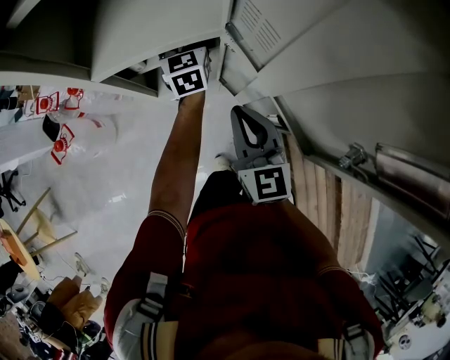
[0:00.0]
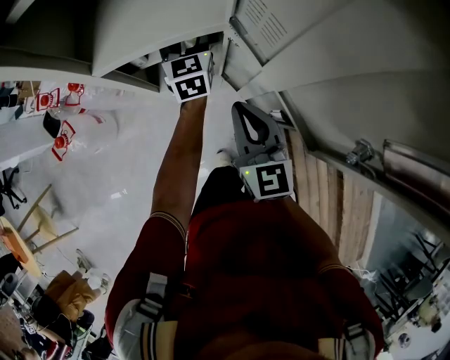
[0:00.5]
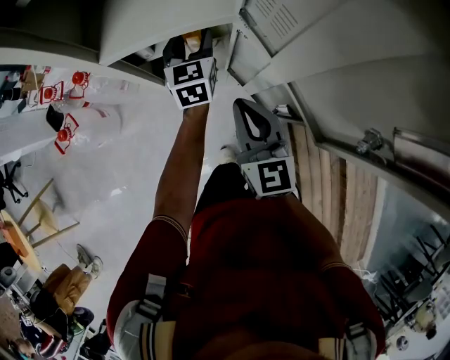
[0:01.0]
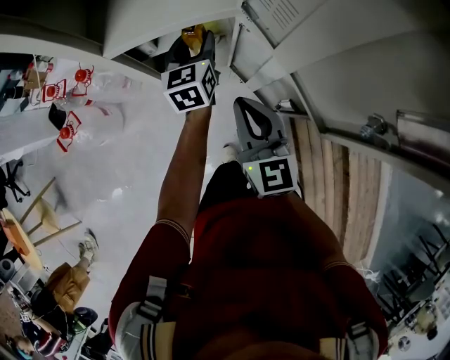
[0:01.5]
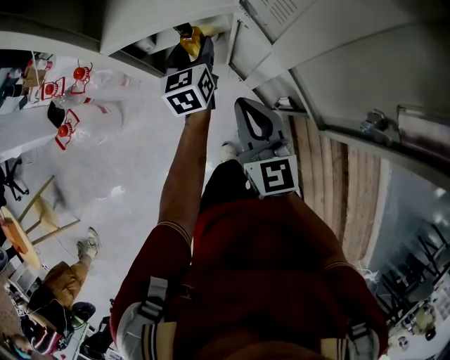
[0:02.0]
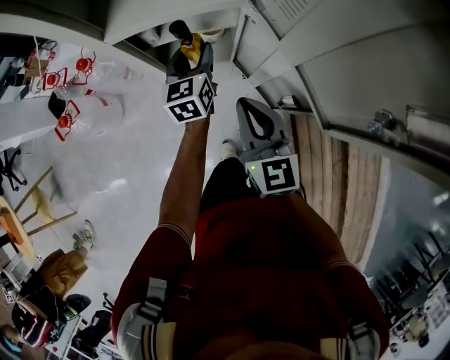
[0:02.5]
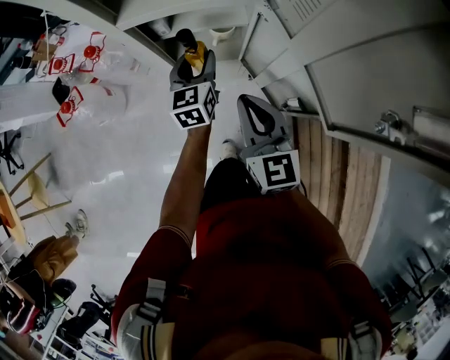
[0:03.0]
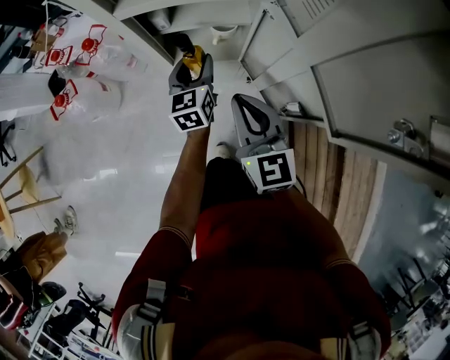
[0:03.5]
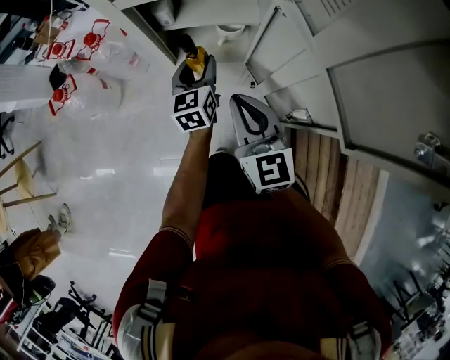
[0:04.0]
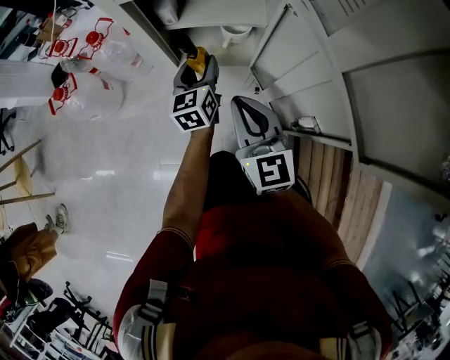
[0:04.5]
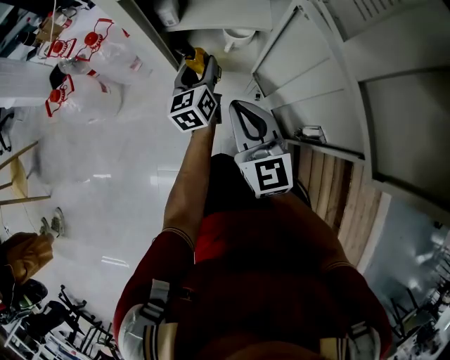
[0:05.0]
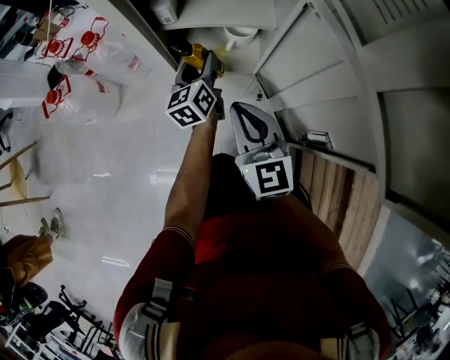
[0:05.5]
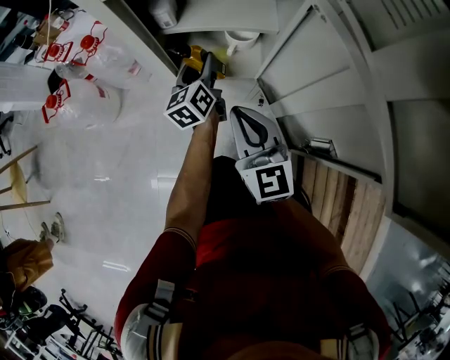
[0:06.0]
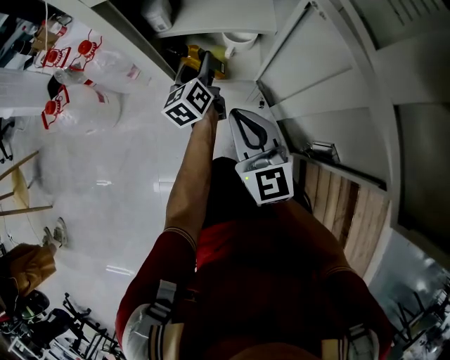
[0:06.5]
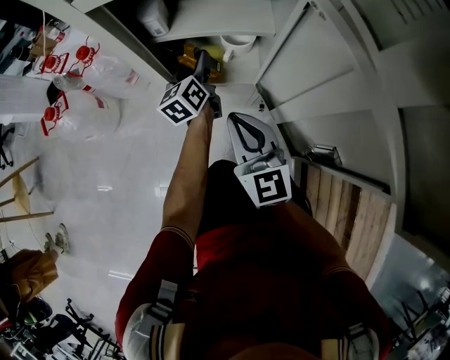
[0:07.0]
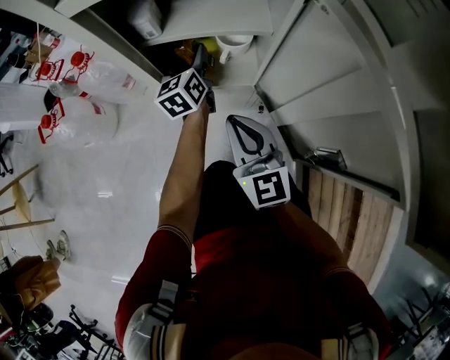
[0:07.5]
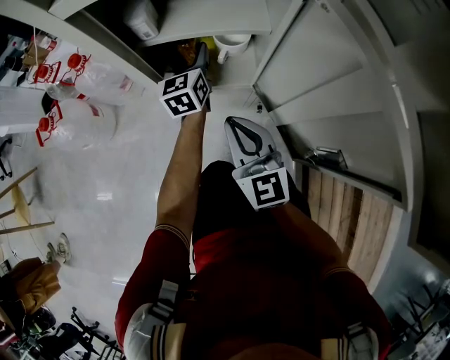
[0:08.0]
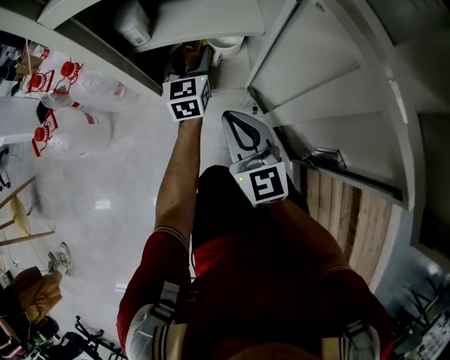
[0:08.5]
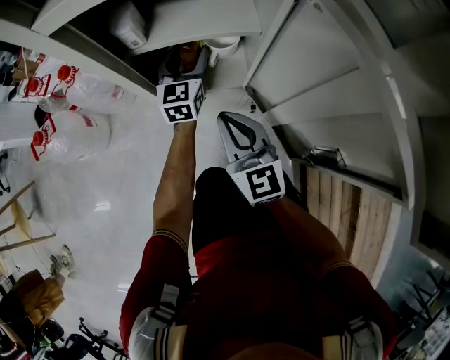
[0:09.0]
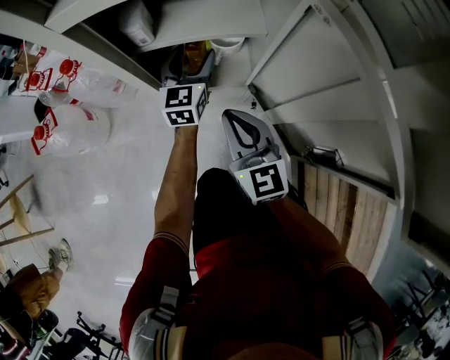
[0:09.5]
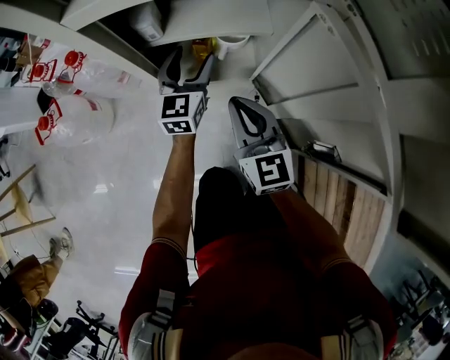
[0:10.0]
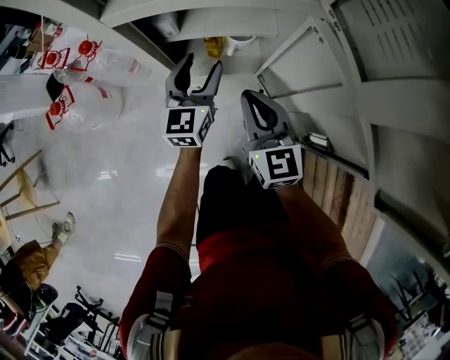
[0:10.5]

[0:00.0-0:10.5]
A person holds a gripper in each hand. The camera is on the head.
0.0 to 2.0 s: The left gripper shifts about 10 cm backward.
2.0 to 4.0 s: The right gripper is displaced downward by approximately 10 cm, while the left gripper shifts about 15 cm downward, to the left and backward.
4.0 to 6.5 s: The right gripper travels downward by some 10 cm, while the left gripper goes some 15 cm downward and forward, and rotates some 20 degrees.
6.5 to 8.5 s: The left gripper ends up approximately 5 cm from where it was, and swivels about 40 degrees.
8.5 to 10.5 s: The left gripper goes approximately 15 cm upward and backward; the right gripper travels upward by approximately 10 cm.

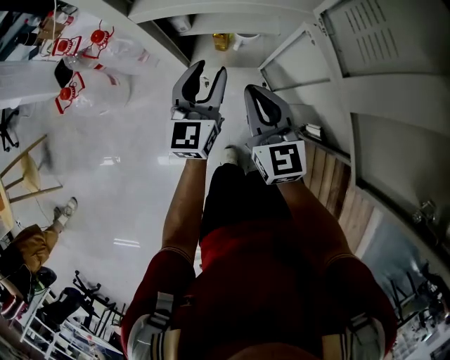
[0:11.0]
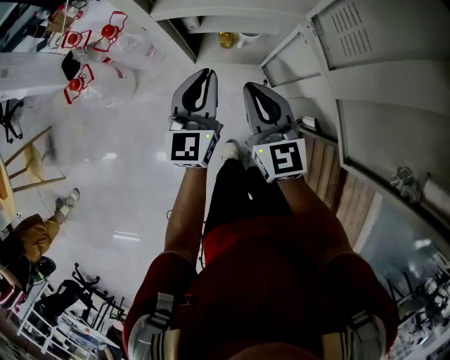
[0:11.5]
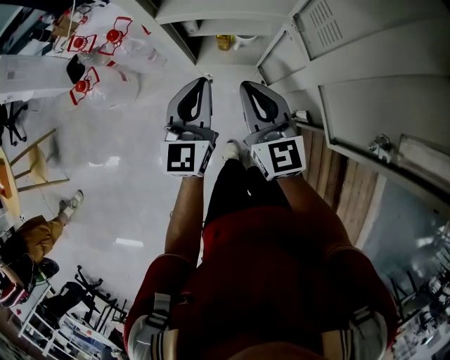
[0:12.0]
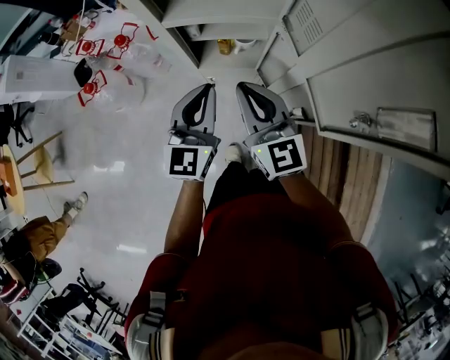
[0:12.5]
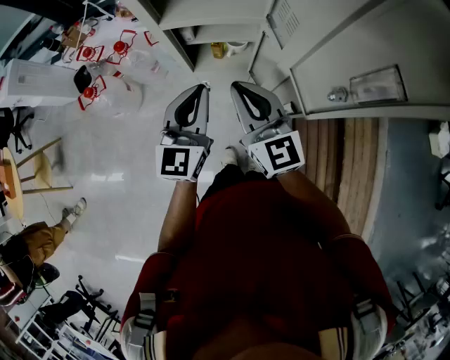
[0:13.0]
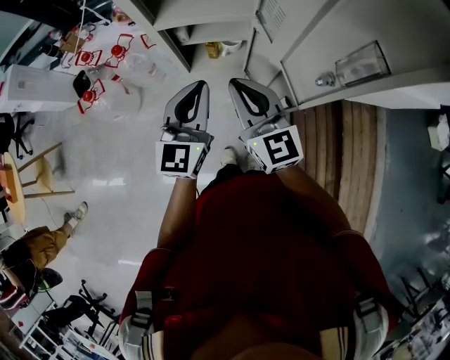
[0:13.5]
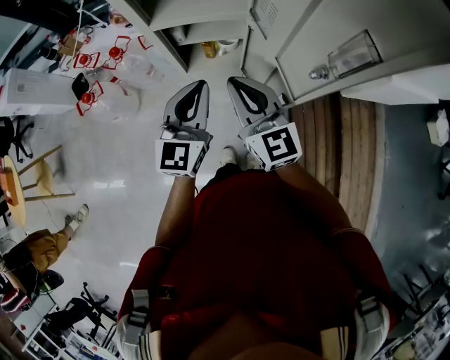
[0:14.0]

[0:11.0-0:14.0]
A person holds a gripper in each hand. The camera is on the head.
11.0 to 12.5 s: The right gripper heads upward, covering about 15 cm. Meanwhile the left gripper heads upward and backward, covering some 20 cm, and closes.
12.5 to 14.0 s: The right gripper shifts by approximately 5 cm. Meanwhile the left gripper ends up about 5 cm from where it was.

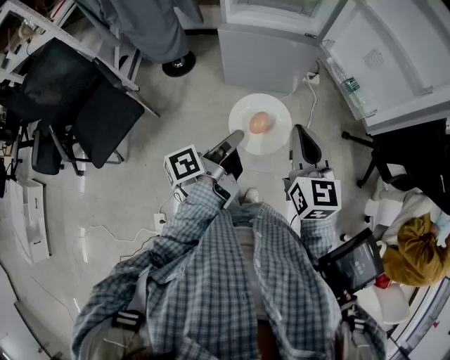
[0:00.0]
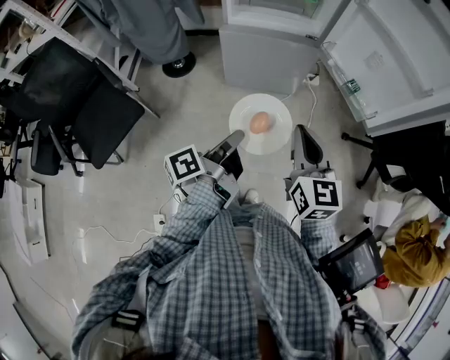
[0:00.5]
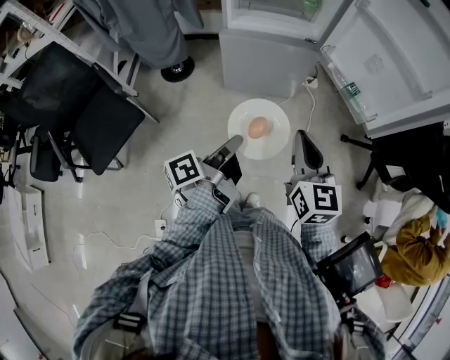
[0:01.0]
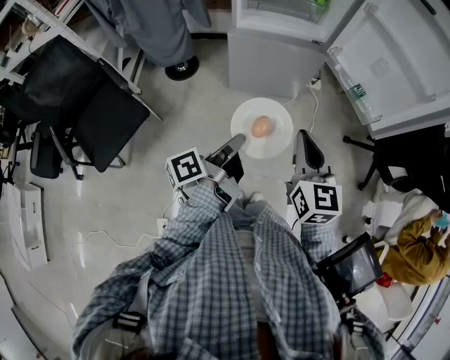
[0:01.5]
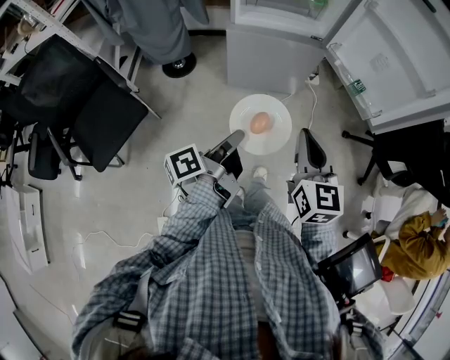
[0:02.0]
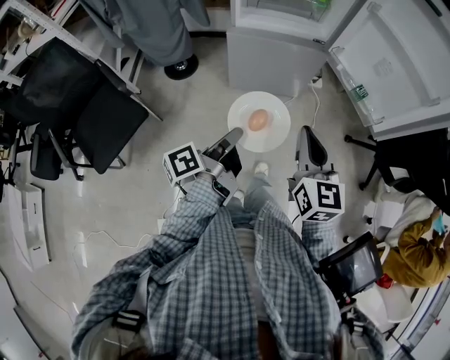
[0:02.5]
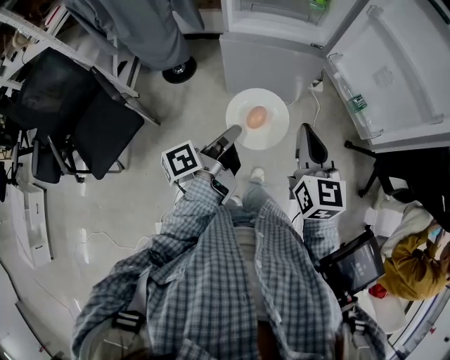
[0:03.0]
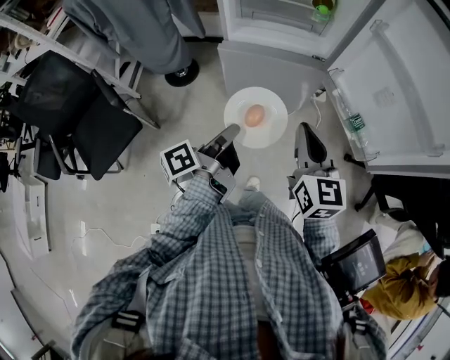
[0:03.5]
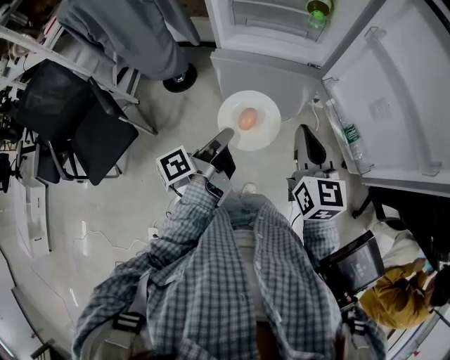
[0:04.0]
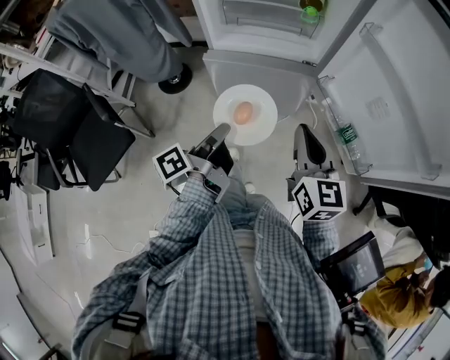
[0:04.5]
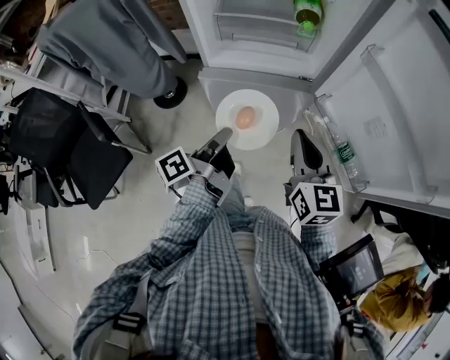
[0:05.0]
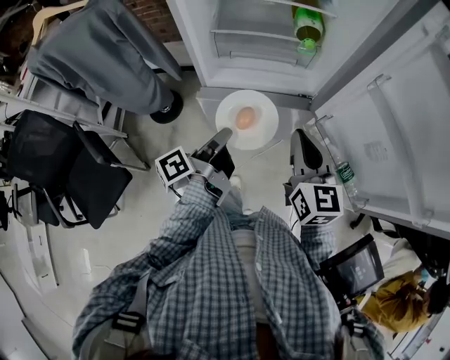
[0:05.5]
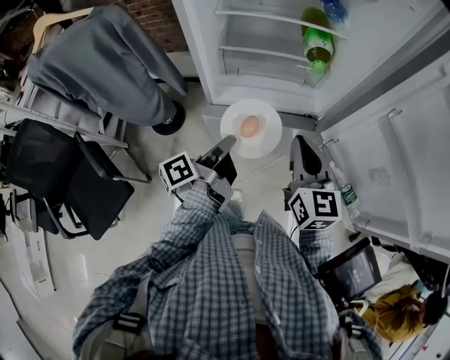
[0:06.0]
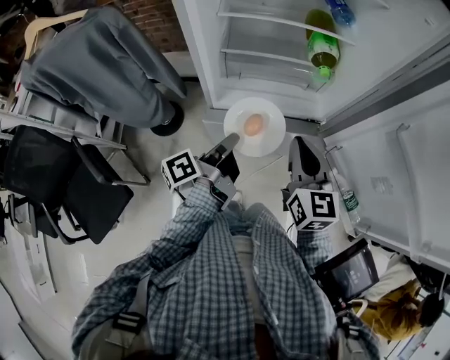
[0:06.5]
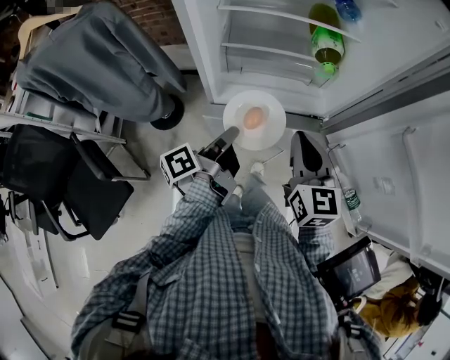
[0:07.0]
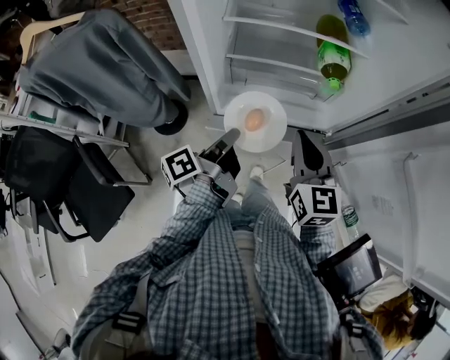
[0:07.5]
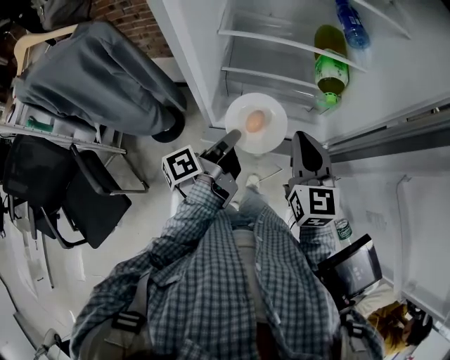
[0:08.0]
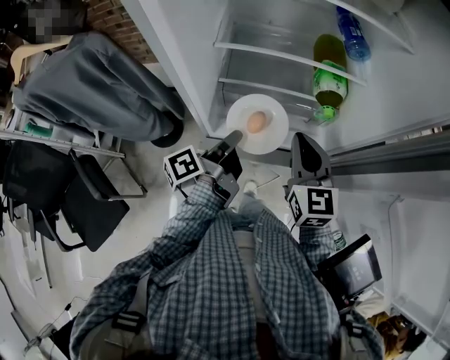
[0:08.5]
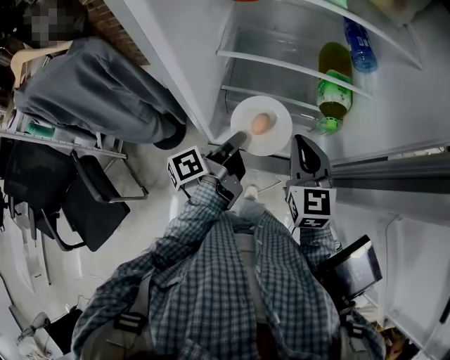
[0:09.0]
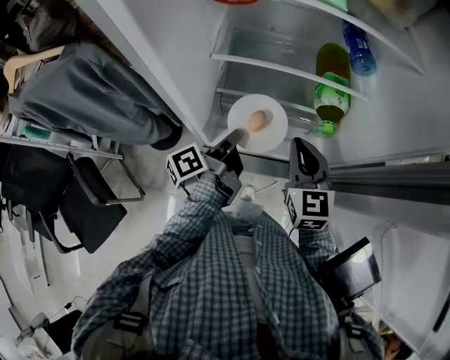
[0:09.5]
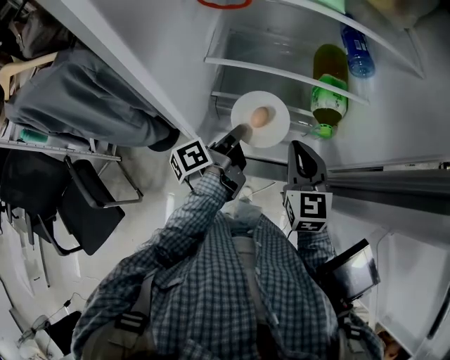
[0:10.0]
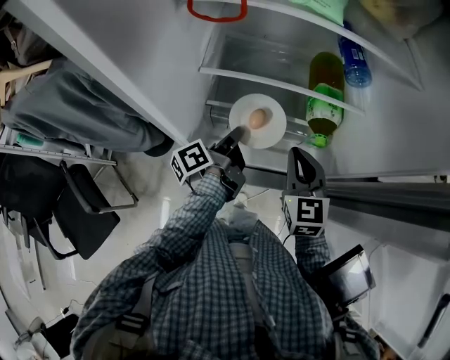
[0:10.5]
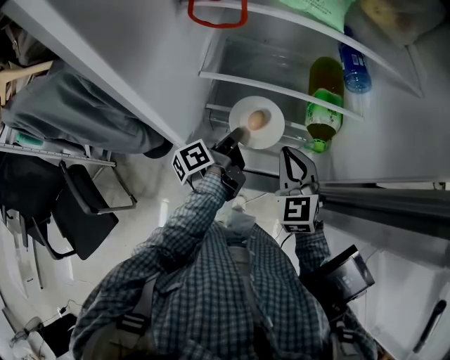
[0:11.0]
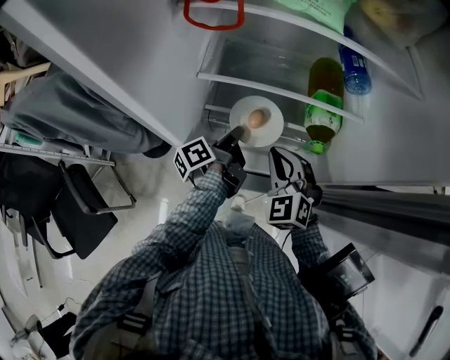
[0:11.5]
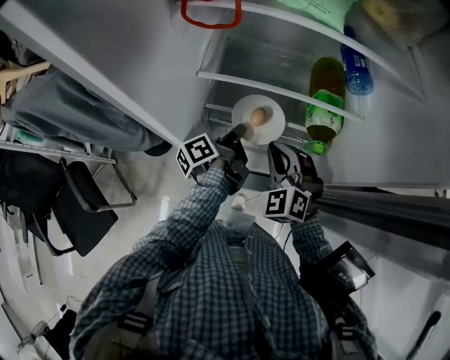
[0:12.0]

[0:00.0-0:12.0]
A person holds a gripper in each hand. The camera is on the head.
2.0 to 4.0 s: The right gripper shifts by about 25 cm.
4.0 to 6.0 s: The right gripper moves approximately 20 cm.
6.0 to 8.0 s: The right gripper shifts by approximately 15 cm.
8.0 to 10.0 s: The right gripper ends up some 10 cm from where it was.
10.0 to 12.0 s: The right gripper moves about 5 cm, and rotates around the line of its fingers by approximately 40 degrees, counterclockwise from behind.

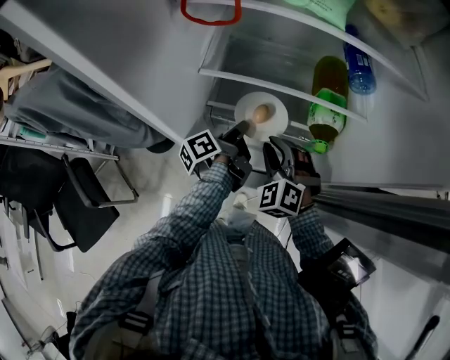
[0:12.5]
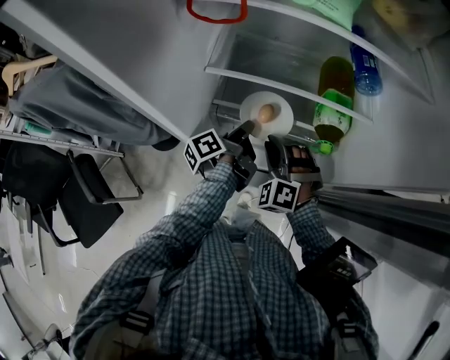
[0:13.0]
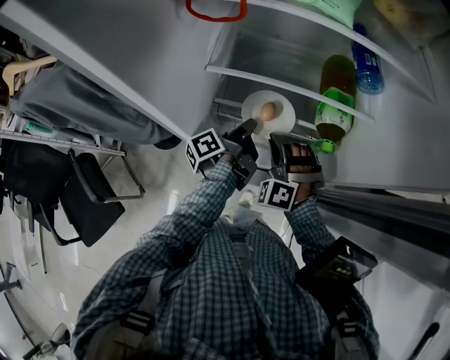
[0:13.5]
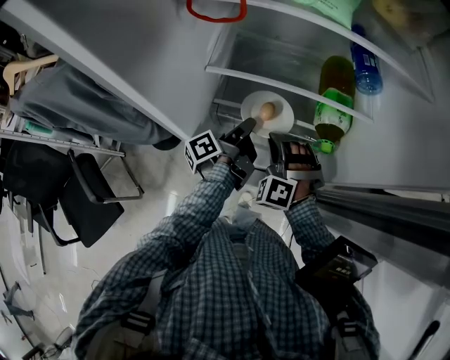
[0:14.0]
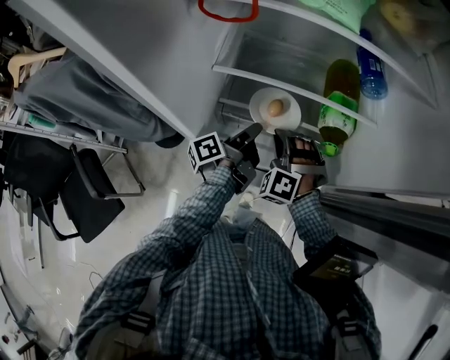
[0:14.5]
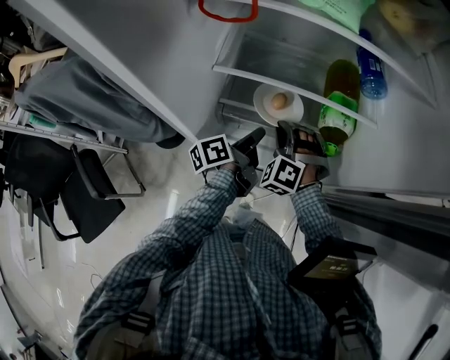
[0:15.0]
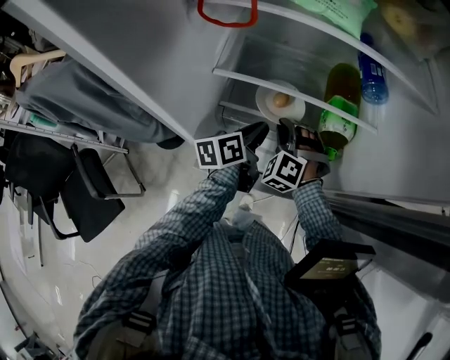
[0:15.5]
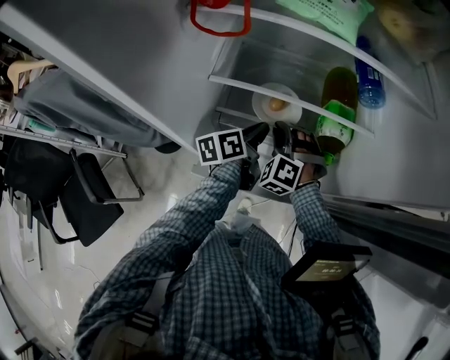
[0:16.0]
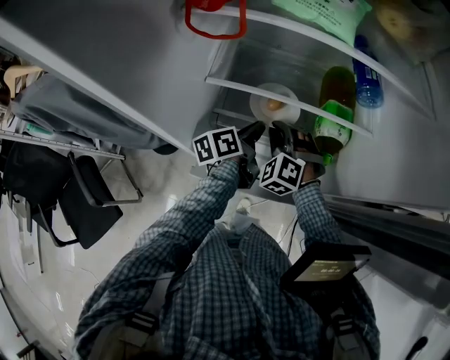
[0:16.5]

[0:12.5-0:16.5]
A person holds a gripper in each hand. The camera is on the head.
12.5 to 14.5 s: The right gripper changes its angle by roughly 20 degrees.
